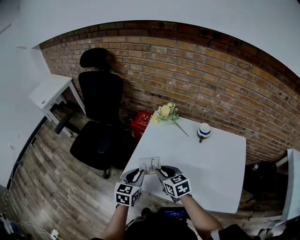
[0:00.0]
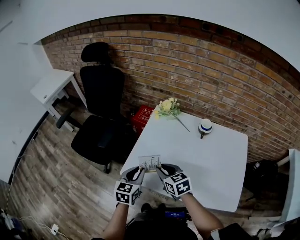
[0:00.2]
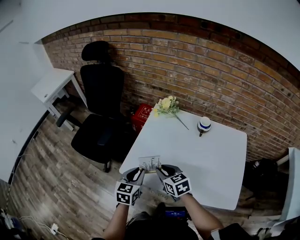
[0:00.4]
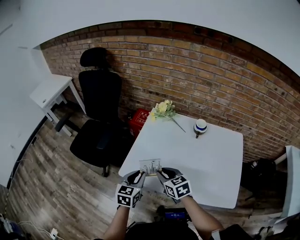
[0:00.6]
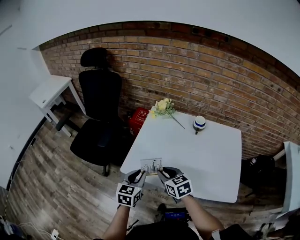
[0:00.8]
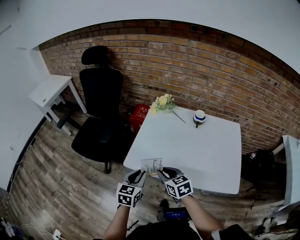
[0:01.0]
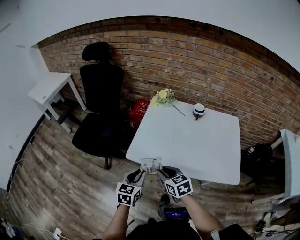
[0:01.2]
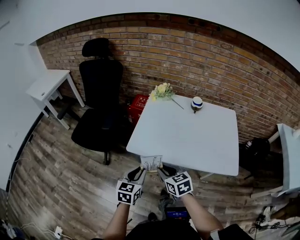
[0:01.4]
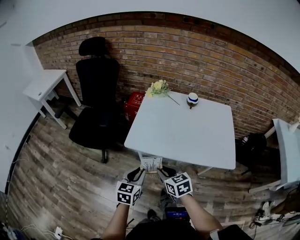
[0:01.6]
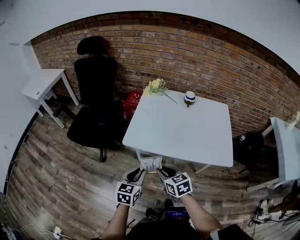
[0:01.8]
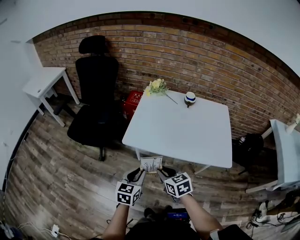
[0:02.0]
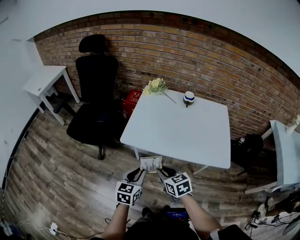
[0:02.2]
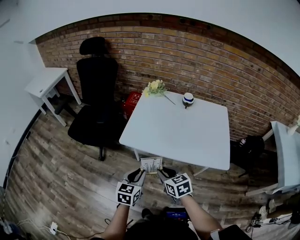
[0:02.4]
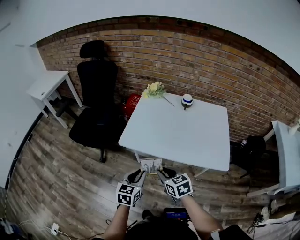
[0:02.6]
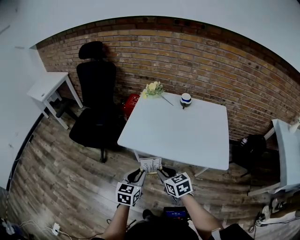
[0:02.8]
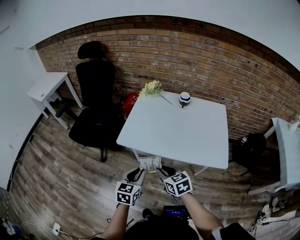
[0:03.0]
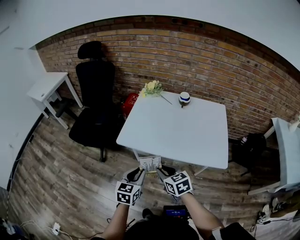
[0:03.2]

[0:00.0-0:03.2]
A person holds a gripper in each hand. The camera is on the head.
0:00.0 to 0:01.6: The grippers both shift backward by about 25 cm.
0:01.6 to 0:03.2: Both grippers travel together to the right, some 5 cm.

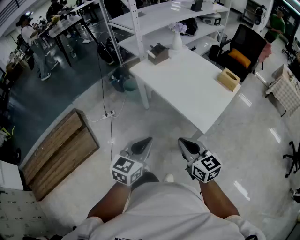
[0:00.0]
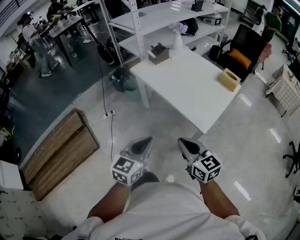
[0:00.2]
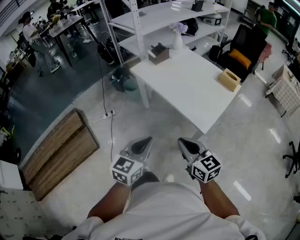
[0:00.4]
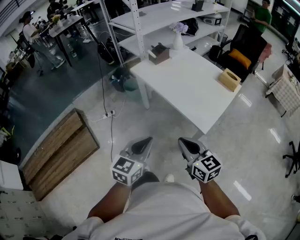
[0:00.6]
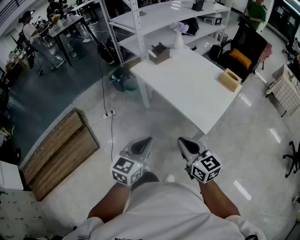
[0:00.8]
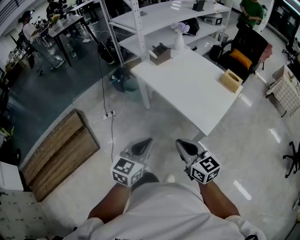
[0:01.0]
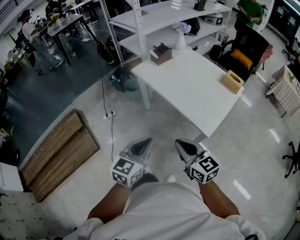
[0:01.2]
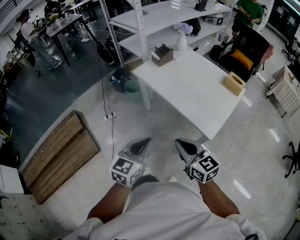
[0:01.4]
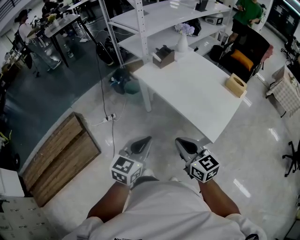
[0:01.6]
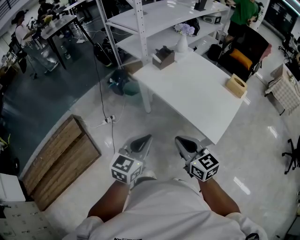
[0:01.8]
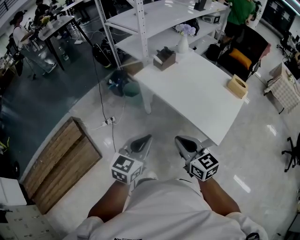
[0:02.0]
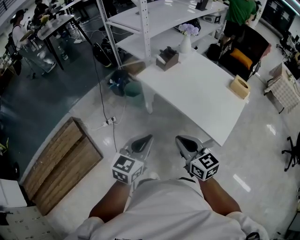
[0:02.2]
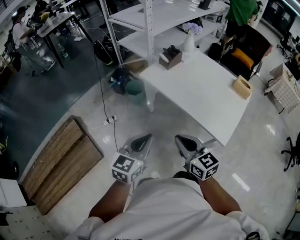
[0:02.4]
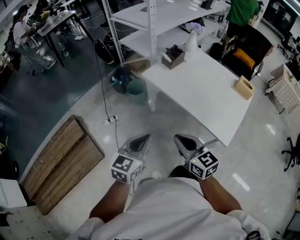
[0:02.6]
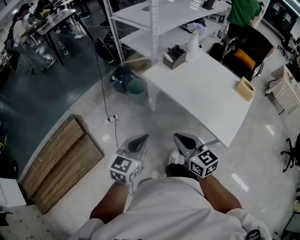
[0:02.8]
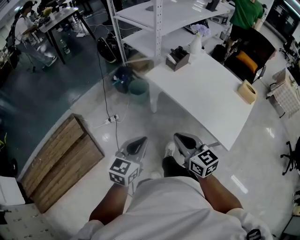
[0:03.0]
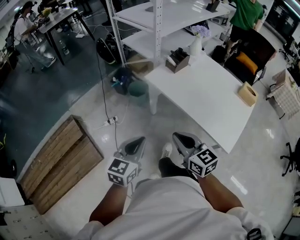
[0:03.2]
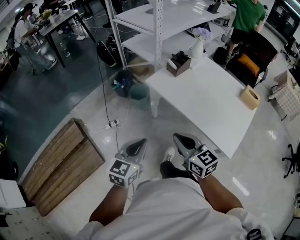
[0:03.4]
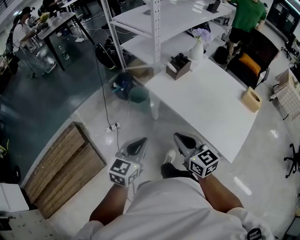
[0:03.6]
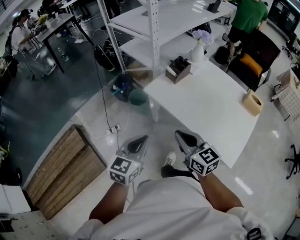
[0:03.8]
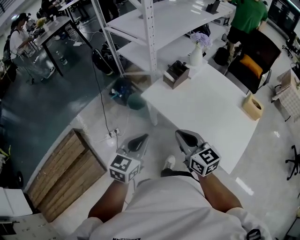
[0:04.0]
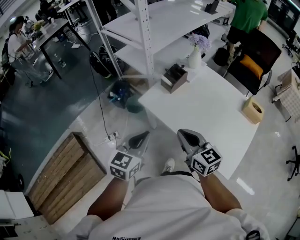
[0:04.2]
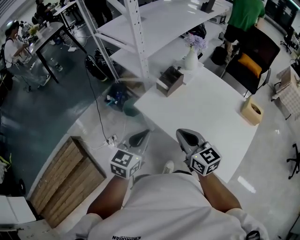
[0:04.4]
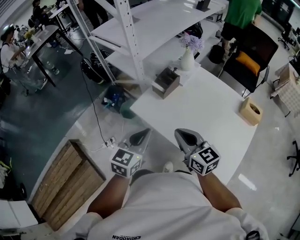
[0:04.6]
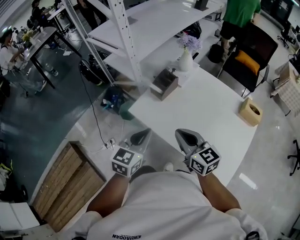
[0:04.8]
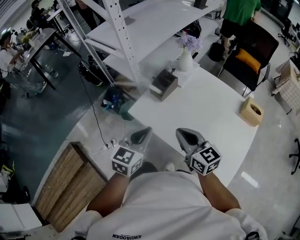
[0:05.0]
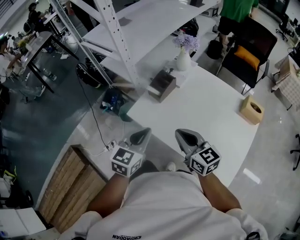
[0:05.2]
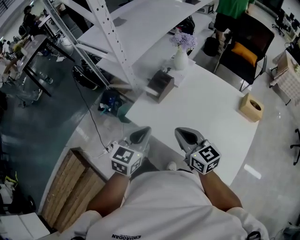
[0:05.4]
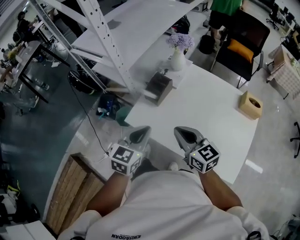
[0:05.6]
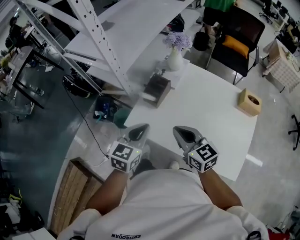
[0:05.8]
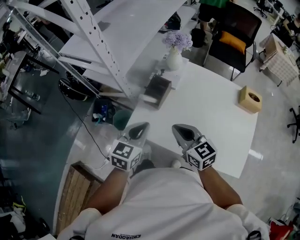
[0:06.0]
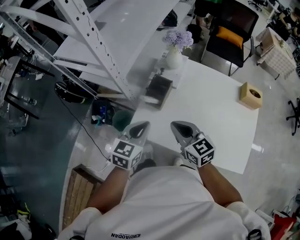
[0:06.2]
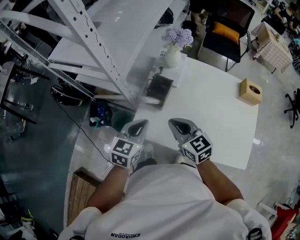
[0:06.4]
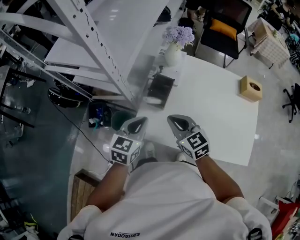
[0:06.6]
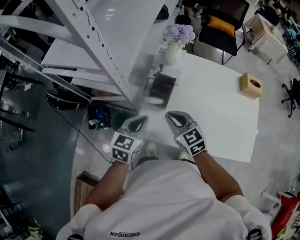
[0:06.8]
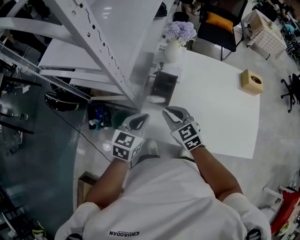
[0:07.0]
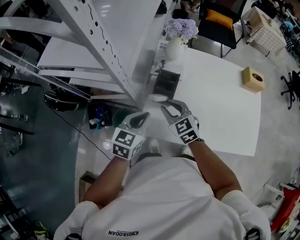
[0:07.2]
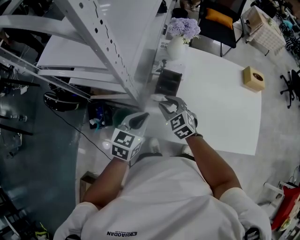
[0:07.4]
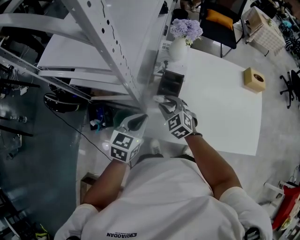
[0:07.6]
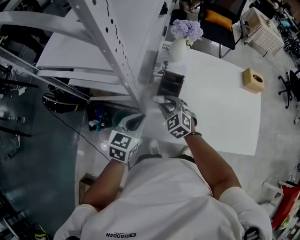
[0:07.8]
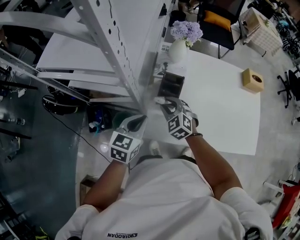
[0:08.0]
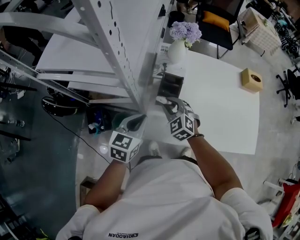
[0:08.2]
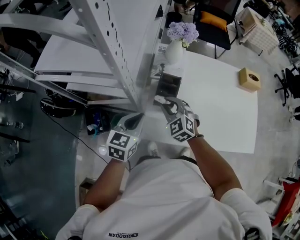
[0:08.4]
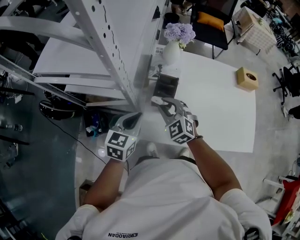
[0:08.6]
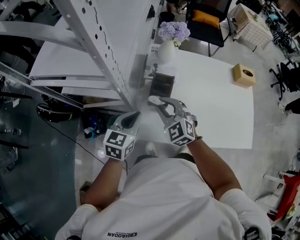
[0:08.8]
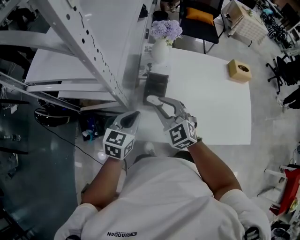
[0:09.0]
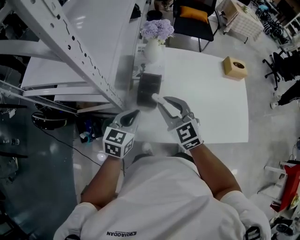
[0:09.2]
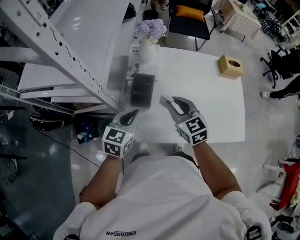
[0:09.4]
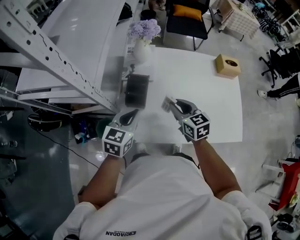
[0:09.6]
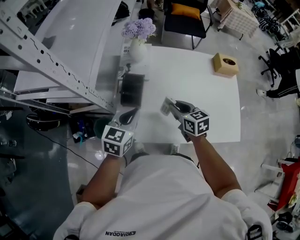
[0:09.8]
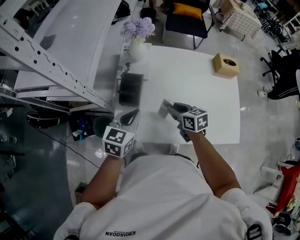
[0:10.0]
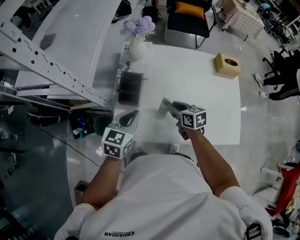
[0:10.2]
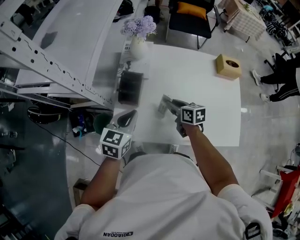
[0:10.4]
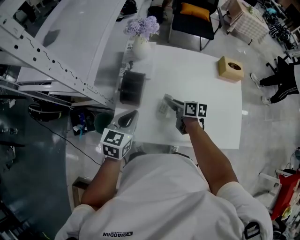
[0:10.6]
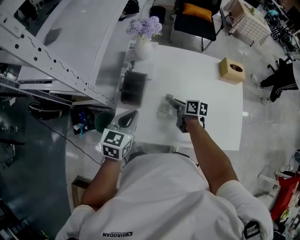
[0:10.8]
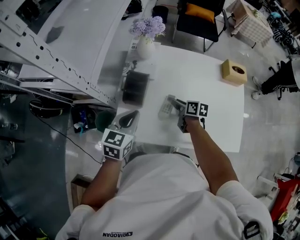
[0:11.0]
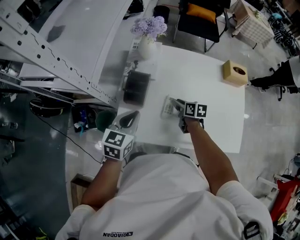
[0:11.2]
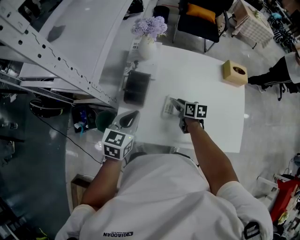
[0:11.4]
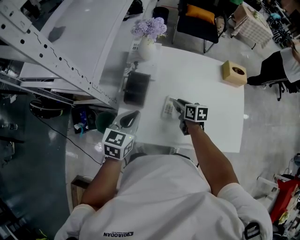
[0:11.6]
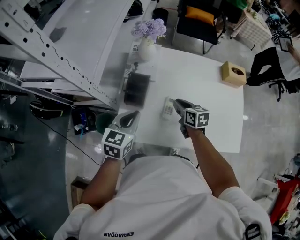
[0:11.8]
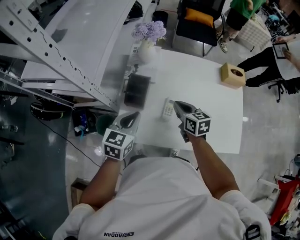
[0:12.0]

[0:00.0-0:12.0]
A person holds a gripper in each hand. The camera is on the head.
0:00.0 to 0:01.6: The two grippers go some 10 cm forward and to the left.
0:01.6 to 0:03.0: Both grippers travel together to the left and forward, roughly 20 cm.
0:03.0 to 0:04.4: The two grippers go some 25 cm forward.
0:04.4 to 0:06.0: The two grippers go about 15 cm forward.
0:06.0 to 0:07.6: The right gripper shifts roughly 25 cm forward, to the left and downward, turns by about 40 degrees, and opens up; the left gripper goes some 15 cm to the left, forward and downward.
0:07.6 to 0:09.0: The right gripper moves upward, approximately 10 cm.
0:09.0 to 0:10.4: The right gripper is displaced to the right and downward by roughly 25 cm, and rolls clockwise, seen from behind, by about 60 degrees. Meanwhile the left gripper travels to the right by approximately 10 cm.
0:10.4 to 0:12.0: The right gripper heads upward, covering roughly 5 cm, and closes.

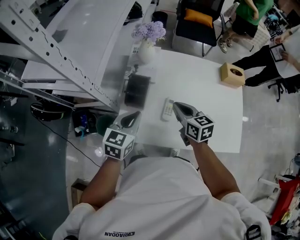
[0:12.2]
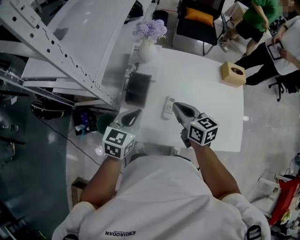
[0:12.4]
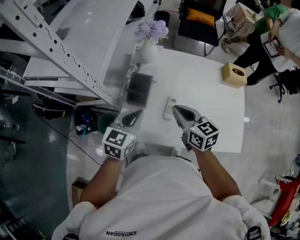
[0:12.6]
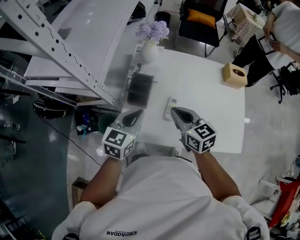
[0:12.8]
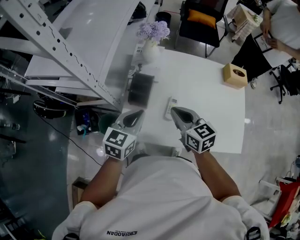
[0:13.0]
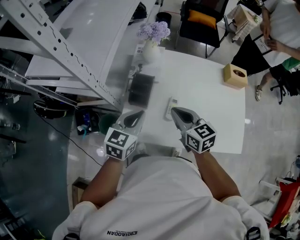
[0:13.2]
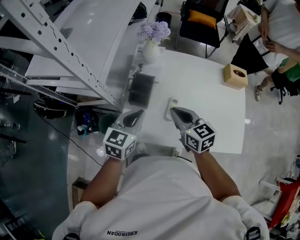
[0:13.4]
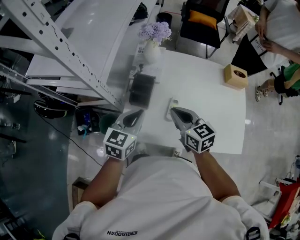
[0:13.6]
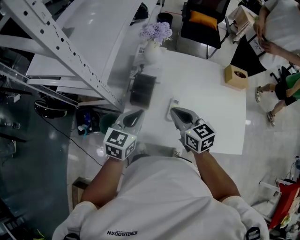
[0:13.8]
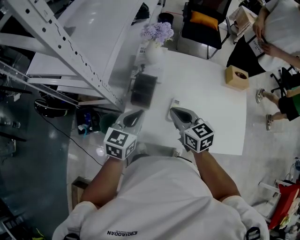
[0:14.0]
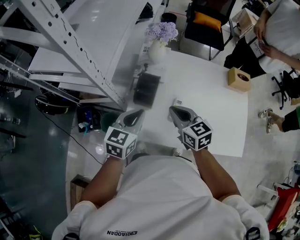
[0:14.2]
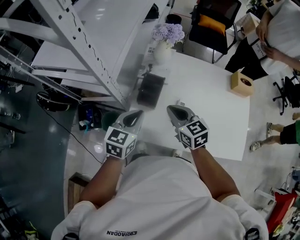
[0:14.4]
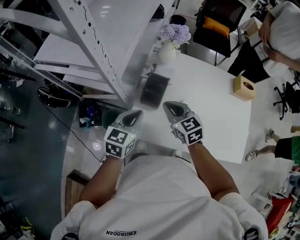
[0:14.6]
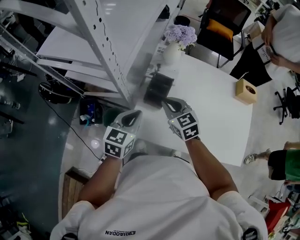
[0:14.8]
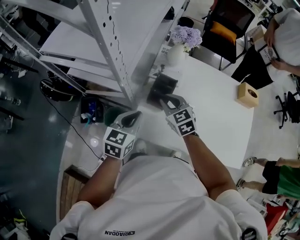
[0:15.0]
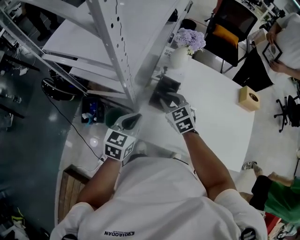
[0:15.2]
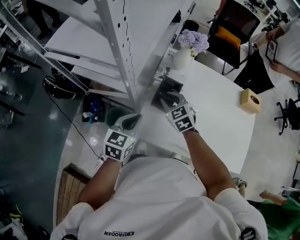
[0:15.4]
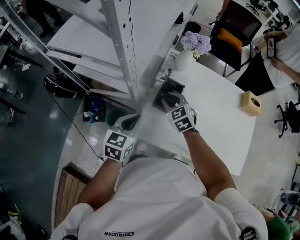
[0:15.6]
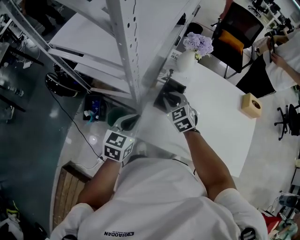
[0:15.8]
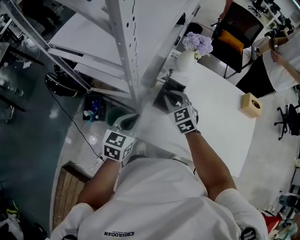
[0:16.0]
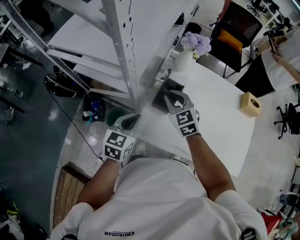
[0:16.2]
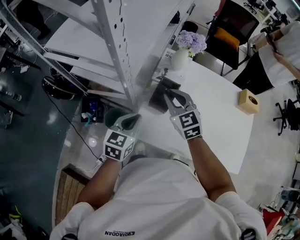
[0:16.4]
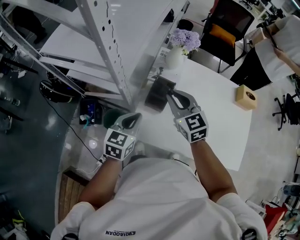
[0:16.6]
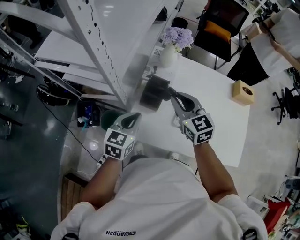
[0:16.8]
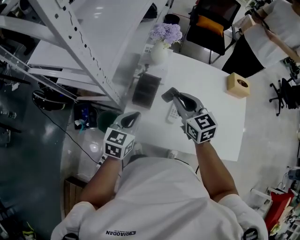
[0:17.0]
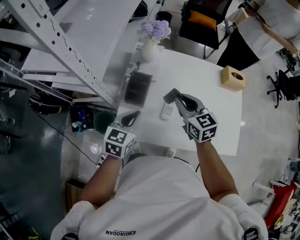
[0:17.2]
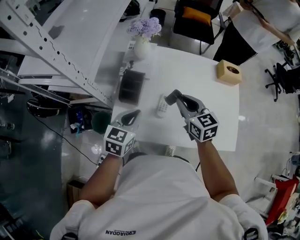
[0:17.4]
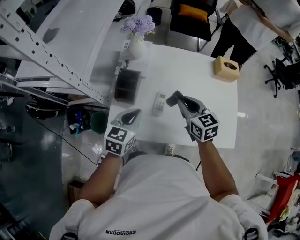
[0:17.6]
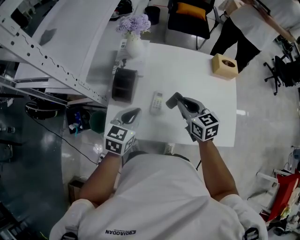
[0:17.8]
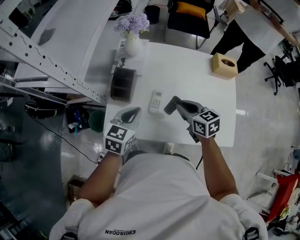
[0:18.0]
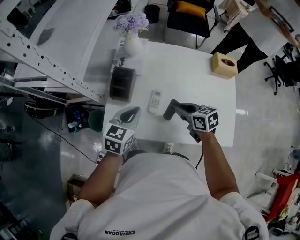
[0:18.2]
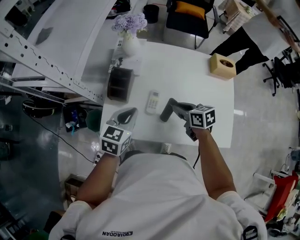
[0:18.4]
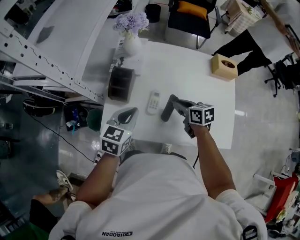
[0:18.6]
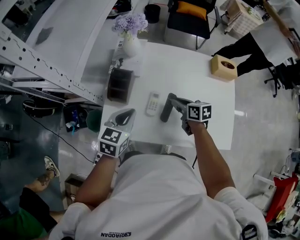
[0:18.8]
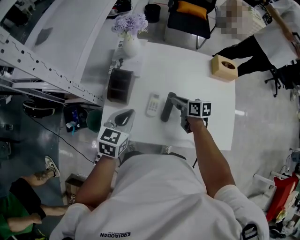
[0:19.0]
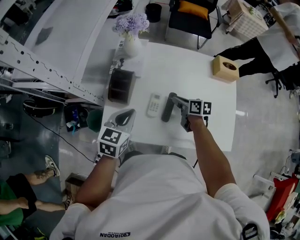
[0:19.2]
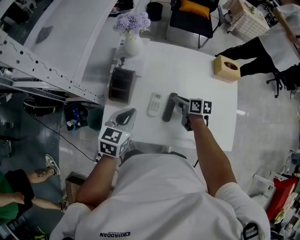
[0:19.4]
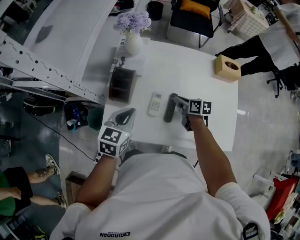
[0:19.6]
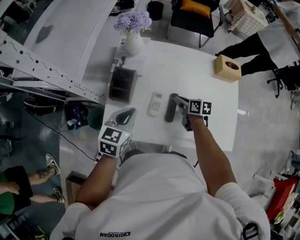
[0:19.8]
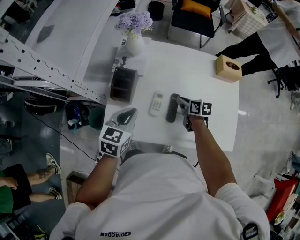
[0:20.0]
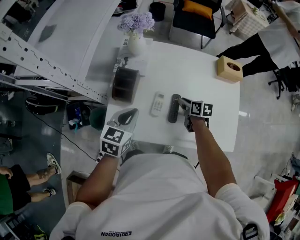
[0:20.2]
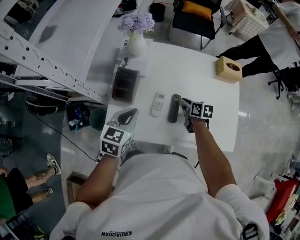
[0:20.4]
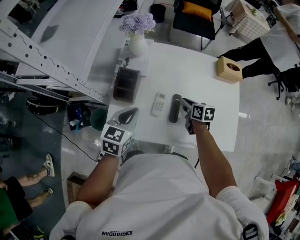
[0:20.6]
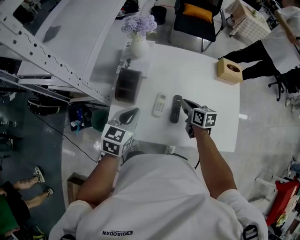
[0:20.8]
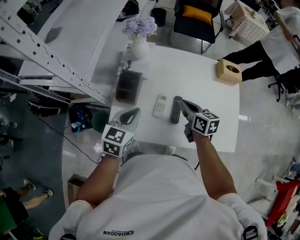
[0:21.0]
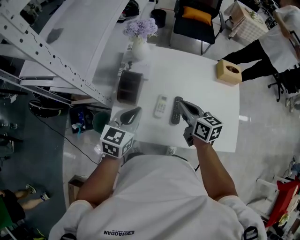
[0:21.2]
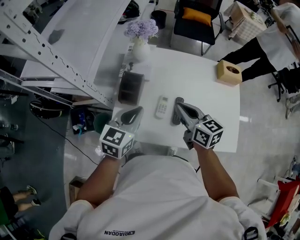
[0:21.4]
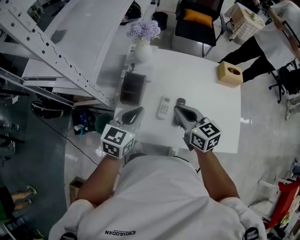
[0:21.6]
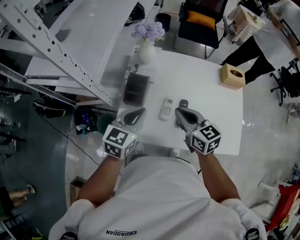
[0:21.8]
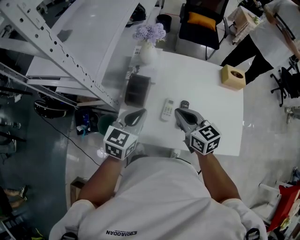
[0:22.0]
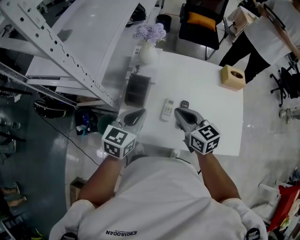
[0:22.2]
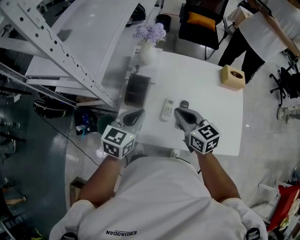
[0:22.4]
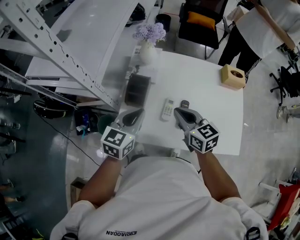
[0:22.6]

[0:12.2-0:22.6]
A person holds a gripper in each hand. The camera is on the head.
0:12.2 to 0:13.6: The right gripper ends up about 5 cm from where it was.
0:13.6 to 0:15.2: The right gripper goes approximately 15 cm to the left, forward and downward, swivels some 30 degrees, and opens up. The left gripper goes some 10 cm to the left.
0:15.2 to 0:16.6: The right gripper is displaced upward by about 10 cm.
0:16.6 to 0:18.2: The right gripper shifts some 25 cm to the right and downward, and swivels some 40 degrees, while the left gripper moves to the right, about 15 cm.
0:18.2 to 0:19.6: The right gripper heads downward and forward, covering roughly 10 cm, and changes its angle by some 20 degrees.
0:19.6 to 0:21.2: The right gripper is displaced upward by approximately 15 cm, and swivels some 30 degrees.
0:21.2 to 0:22.6: The right gripper heads to the left, covering some 5 cm.
